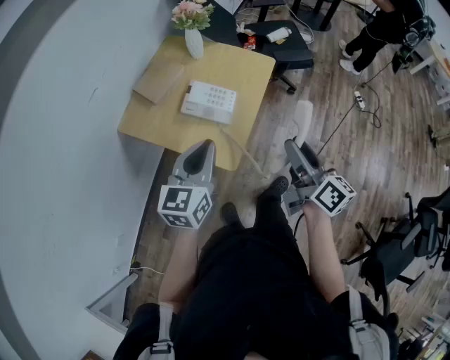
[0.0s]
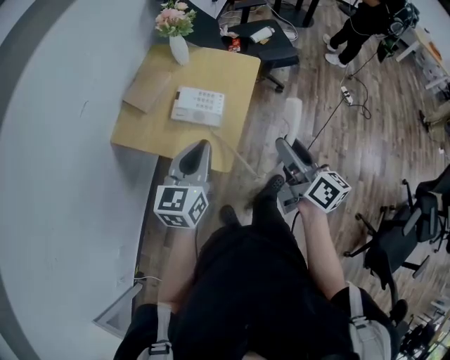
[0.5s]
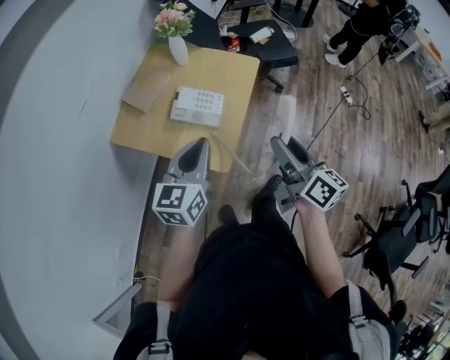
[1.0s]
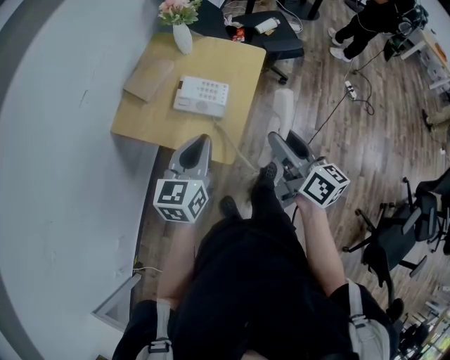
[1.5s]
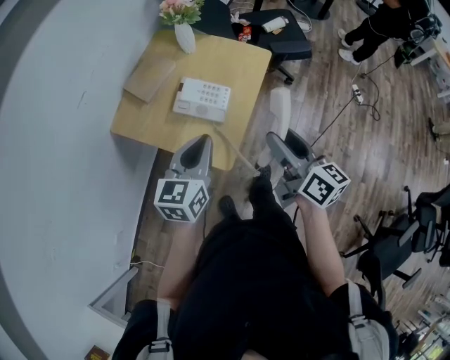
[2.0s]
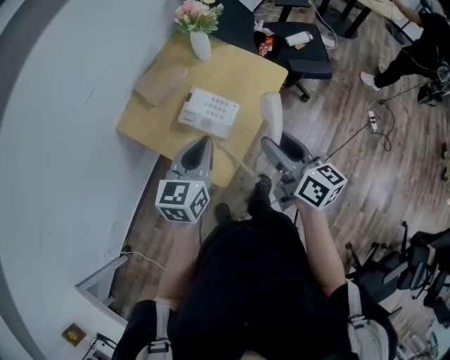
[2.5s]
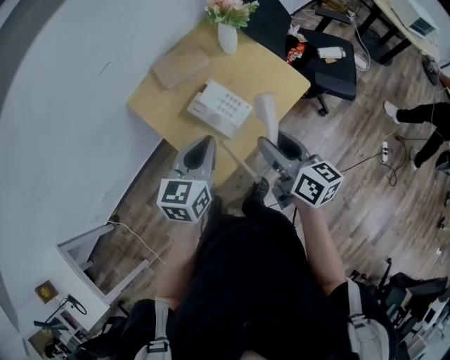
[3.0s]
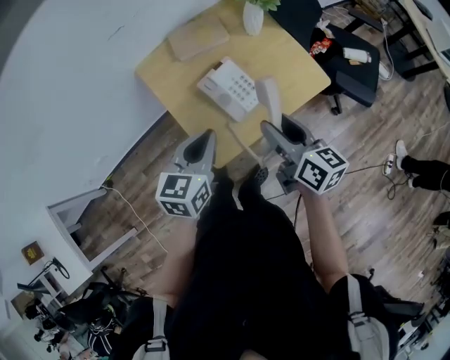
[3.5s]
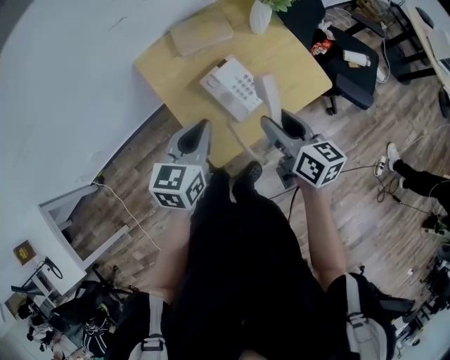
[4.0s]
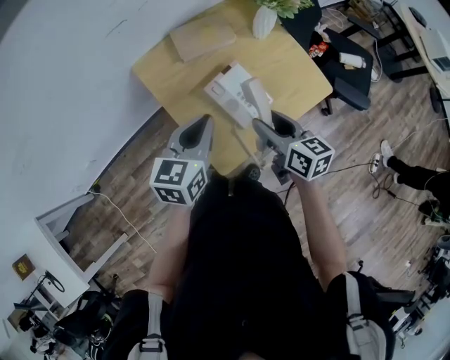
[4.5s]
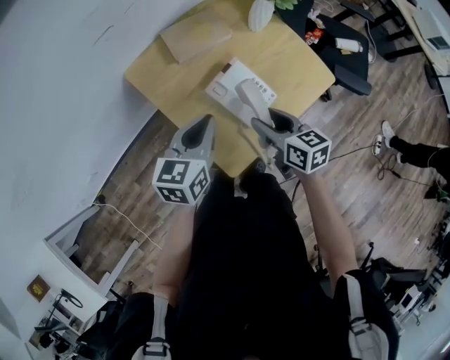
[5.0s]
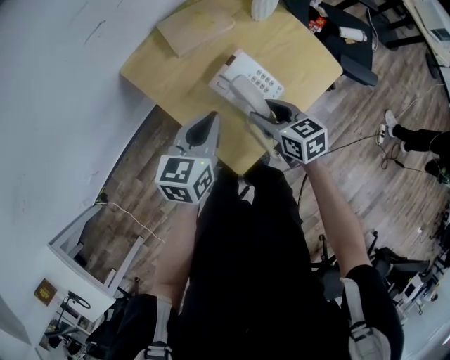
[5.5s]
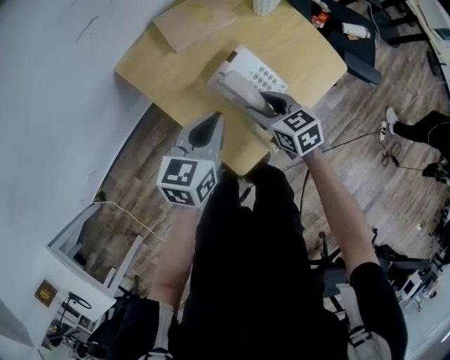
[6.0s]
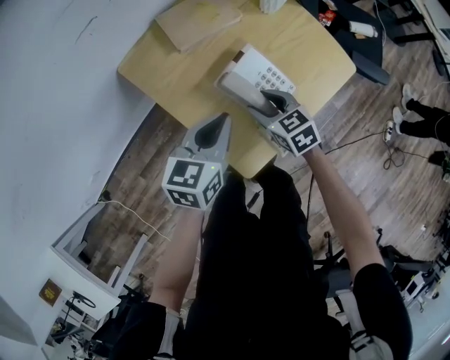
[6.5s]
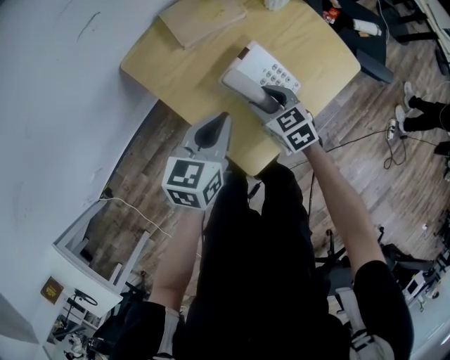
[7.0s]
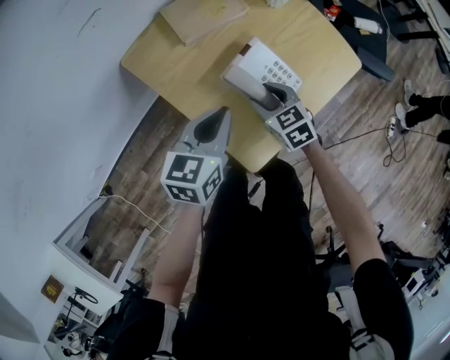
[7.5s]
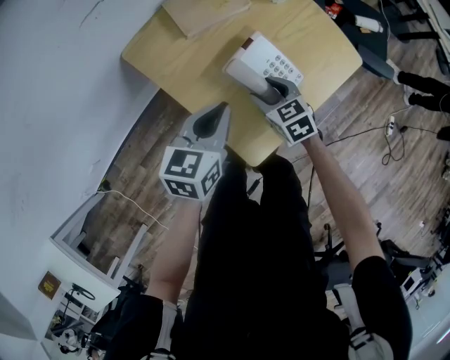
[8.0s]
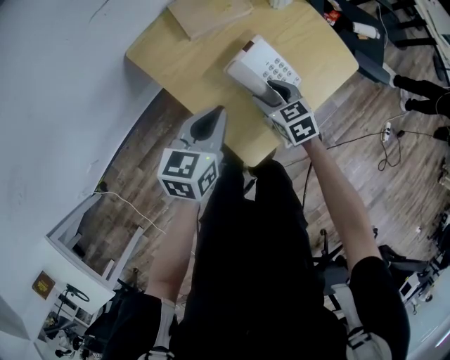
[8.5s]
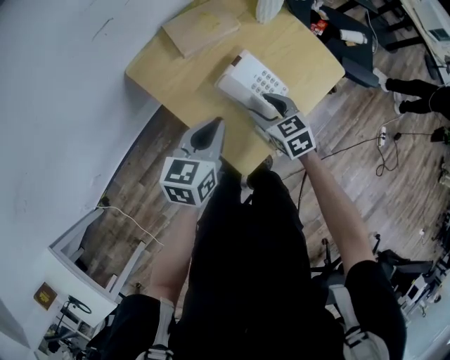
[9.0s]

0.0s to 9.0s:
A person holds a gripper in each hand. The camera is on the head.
0.0s to 2.0s: The right gripper shifts by about 5 cm.
2.0s to 4.5s: The left gripper changes place by roughly 10 cm, and changes its angle by some 30 degrees. Meanwhile the right gripper moves about 25 cm, and swivels approximately 40 degrees.
4.5s to 7.0s: The left gripper shifts some 10 cm downward, while the right gripper goes approximately 20 cm downward, to the left and forward, and changes its angle by roughly 40 degrees.
7.0s to 9.0s: The right gripper ends up approximately 5 cm from where it was.

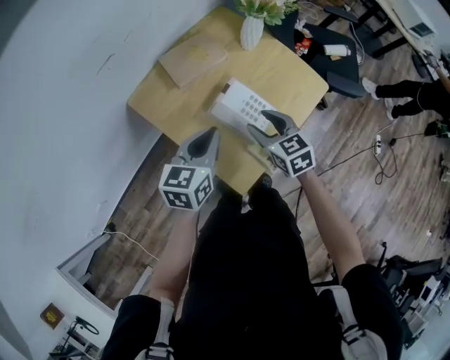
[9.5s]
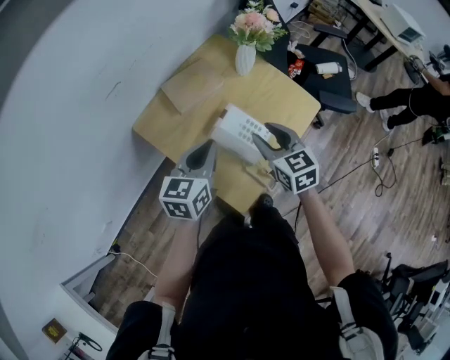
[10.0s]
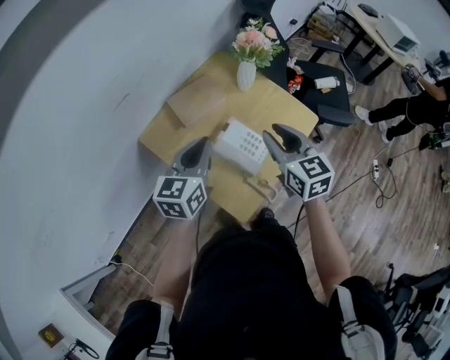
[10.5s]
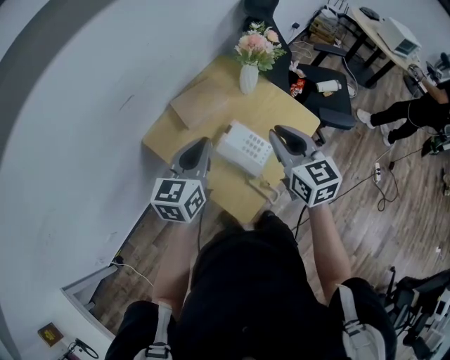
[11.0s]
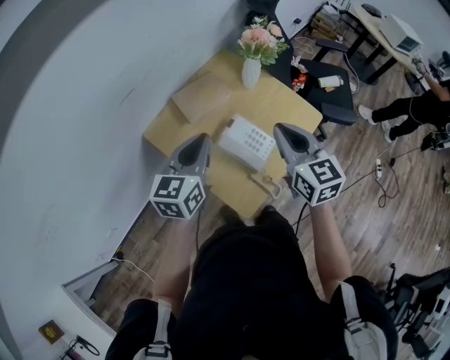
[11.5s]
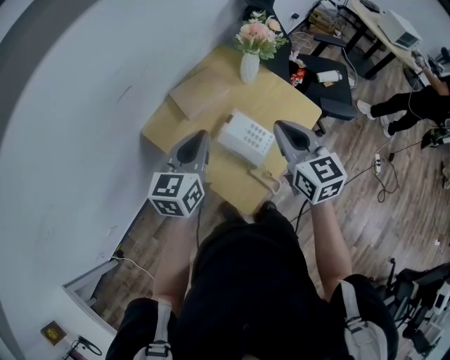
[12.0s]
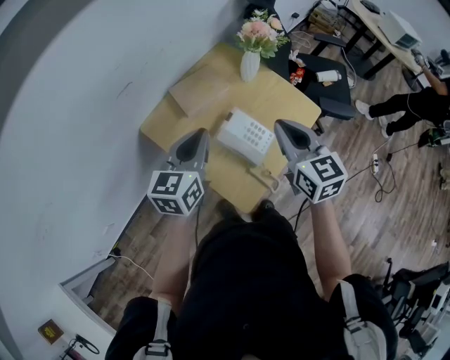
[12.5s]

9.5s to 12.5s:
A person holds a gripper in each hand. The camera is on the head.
9.5s to 11.0s: The right gripper goes roughly 20 cm upward, changes its angle by approximately 20 degrees, and closes its fingers; the left gripper goes some 10 cm upward.
11.0s to 12.5s: The grippers move only a little.

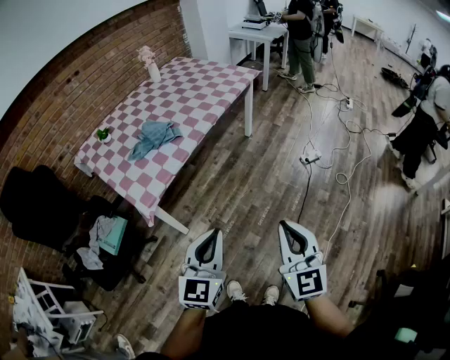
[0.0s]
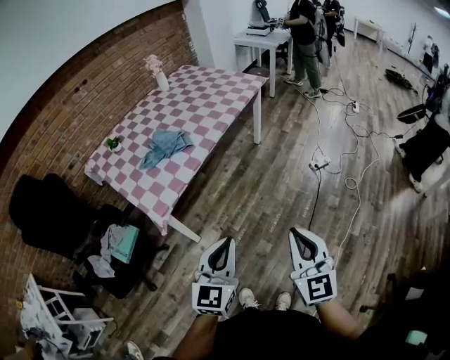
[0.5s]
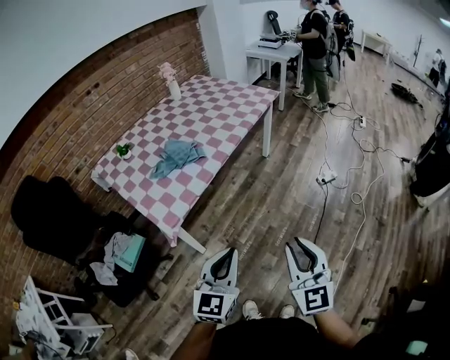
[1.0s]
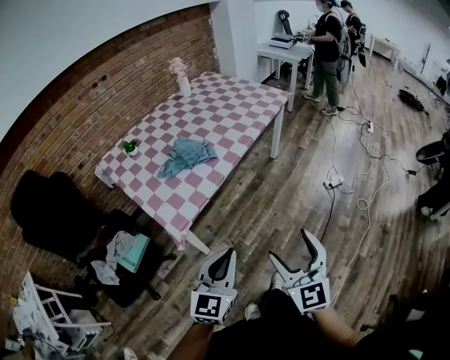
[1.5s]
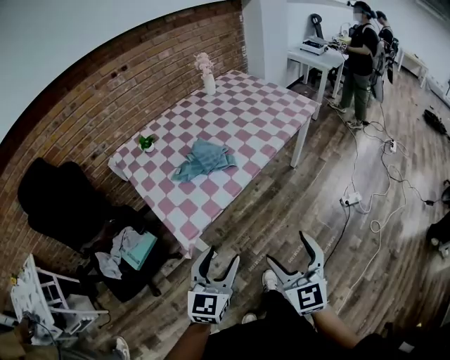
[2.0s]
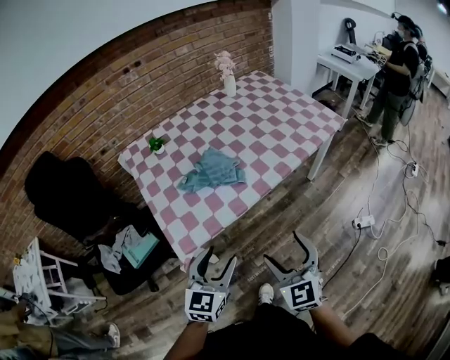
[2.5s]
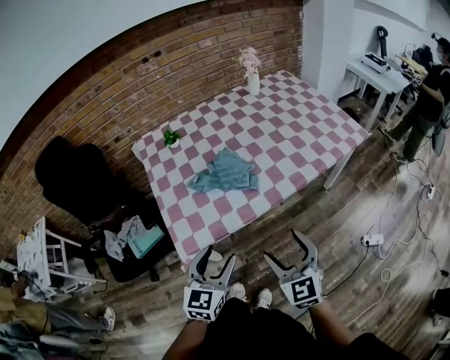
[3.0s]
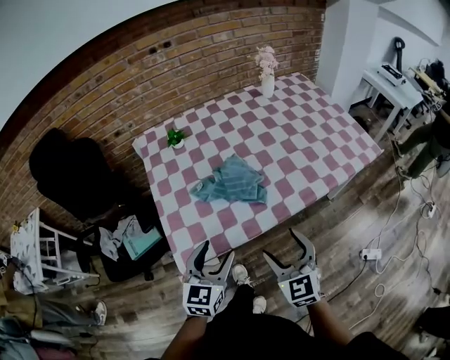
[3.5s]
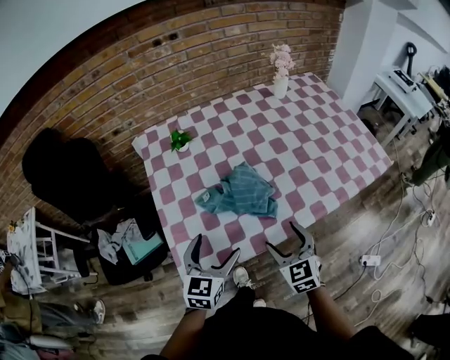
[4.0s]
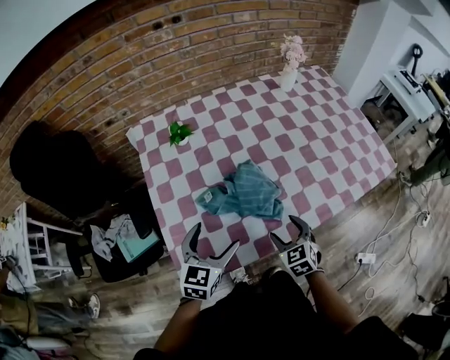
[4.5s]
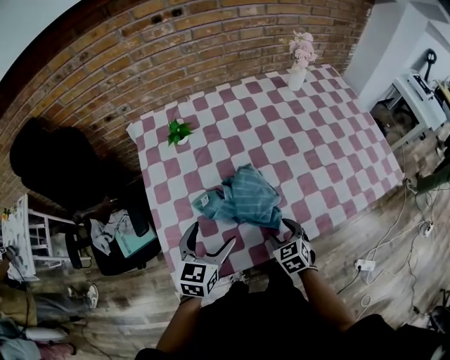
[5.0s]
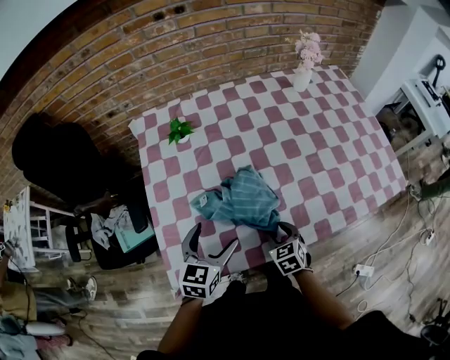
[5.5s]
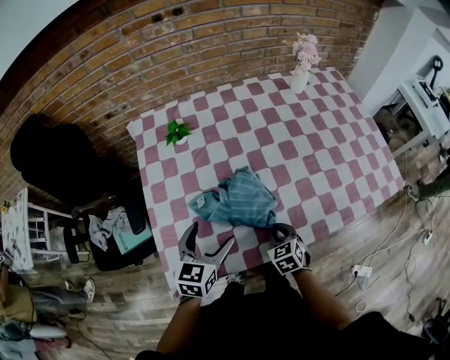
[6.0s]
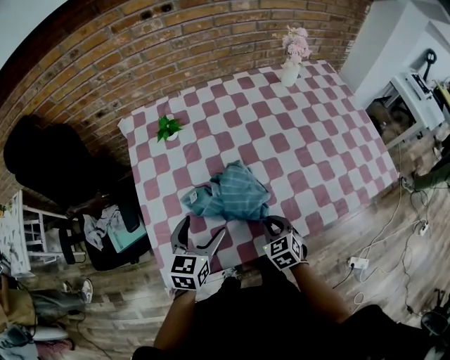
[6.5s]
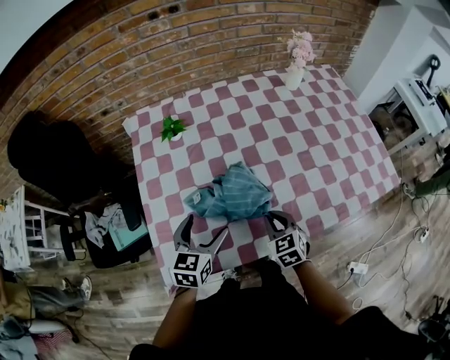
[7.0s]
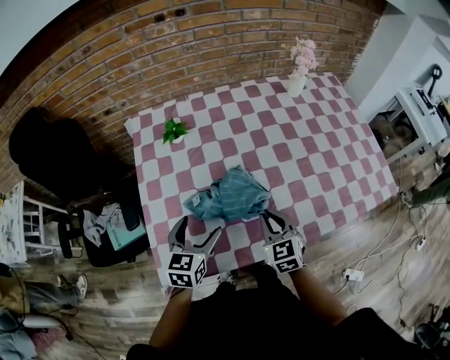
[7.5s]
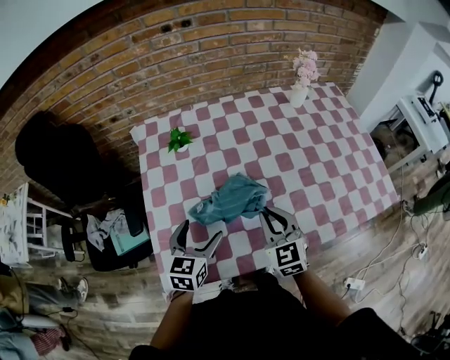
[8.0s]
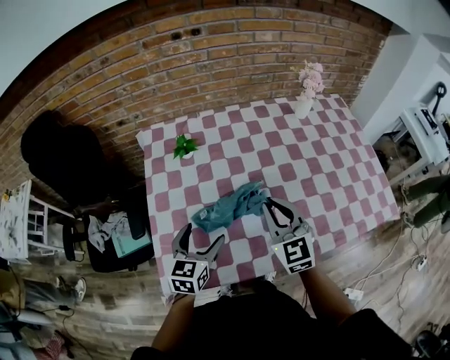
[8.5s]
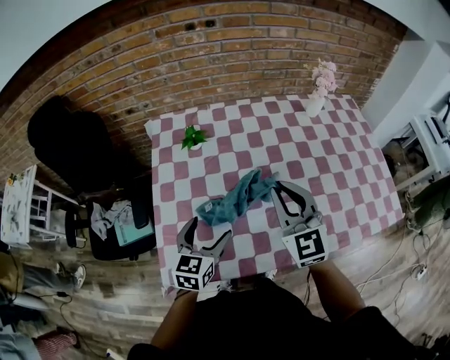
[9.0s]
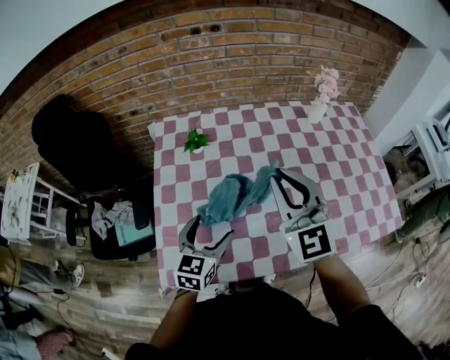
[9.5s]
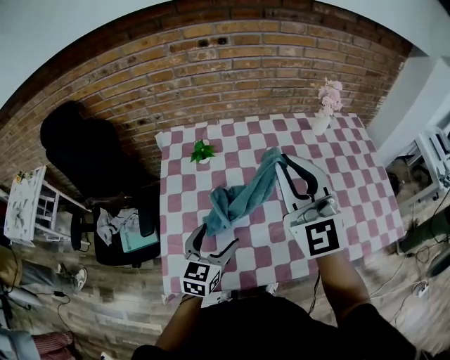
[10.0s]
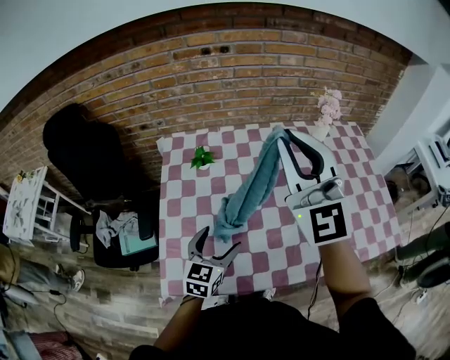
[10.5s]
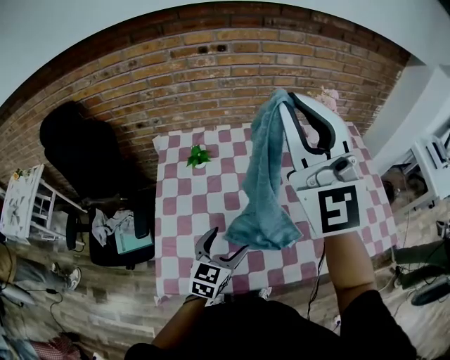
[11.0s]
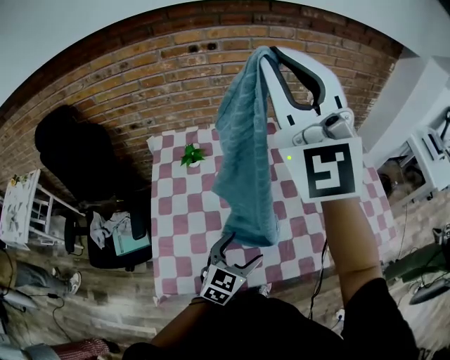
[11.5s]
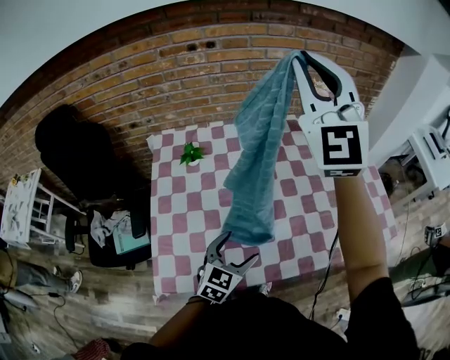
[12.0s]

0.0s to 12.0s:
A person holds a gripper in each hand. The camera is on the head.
0.0s to 2.0s: Both grippers travel together to the left and forward, some 20 cm. The left gripper opens up. Meanwhile the right gripper opens its fingers.
2.0s to 4.0s: Both grippers travel together forward, some 35 cm. The right gripper changes its angle by approximately 30 degrees, while the left gripper rotates about 30 degrees, and opens its fingers.
4.0s to 6.0s: The left gripper is displaced forward by about 10 cm. Meanwhile the right gripper shifts some 20 cm downward and forward, rotates about 20 degrees, and closes.
6.0s to 8.0s: The right gripper is displaced upward by some 15 cm, and rotates about 30 degrees.
8.0s to 10.0s: The right gripper moves upward, about 25 cm, and angles its fingers upward, by some 30 degrees.
10.0s to 12.0s: The right gripper is displaced upward and forward by about 20 cm, and swivels some 30 degrees. Meanwhile the left gripper heads to the right, covering approximately 10 cm.

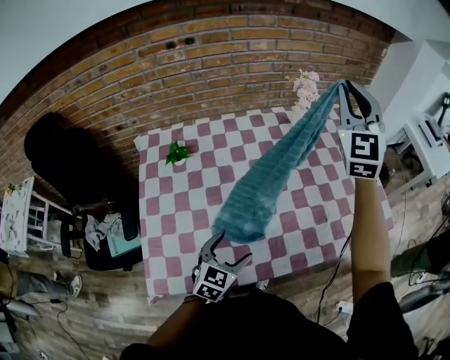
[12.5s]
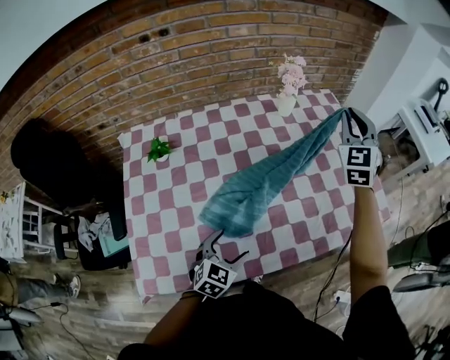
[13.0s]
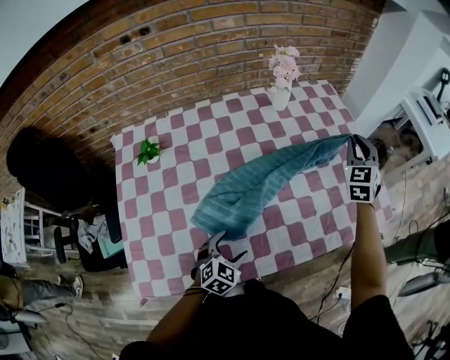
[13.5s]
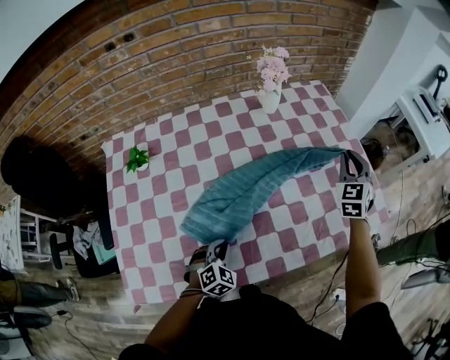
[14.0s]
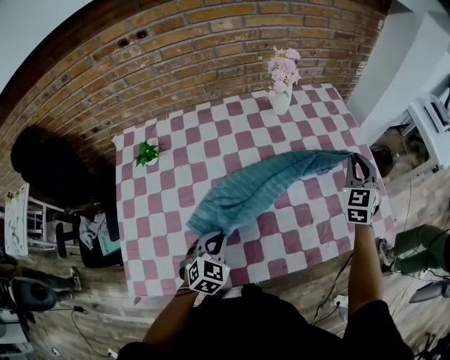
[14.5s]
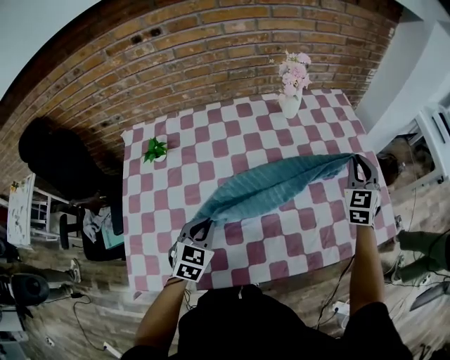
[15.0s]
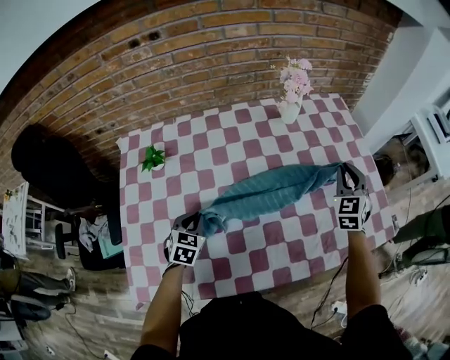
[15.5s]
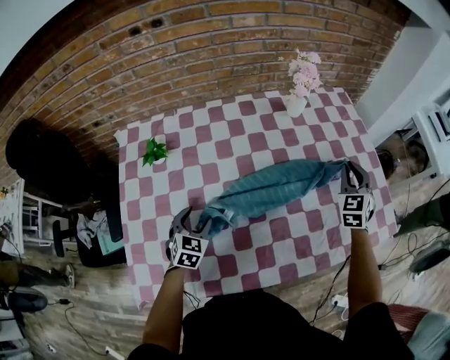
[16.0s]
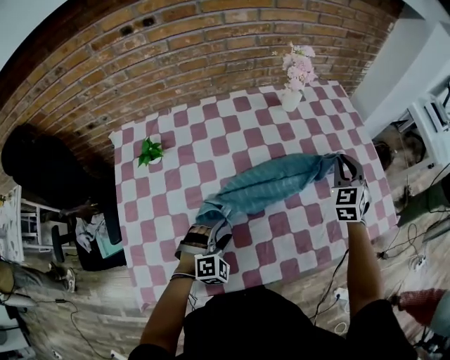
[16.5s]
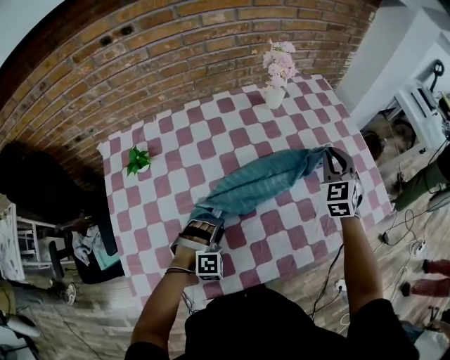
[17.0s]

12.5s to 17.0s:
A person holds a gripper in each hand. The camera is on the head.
12.5s to 14.5s: The right gripper travels downward and to the right by roughly 35 cm, and swivels about 30 degrees; the left gripper shifts about 10 cm forward and downward, changes its angle by approximately 20 degrees, and closes.
14.5s to 17.0s: The right gripper travels to the left by roughly 10 cm, while the left gripper travels downward by some 10 cm, reaches approximately 15 cm to the left, then returns, and rolls clockwise, seen from behind, by about 60 degrees.
